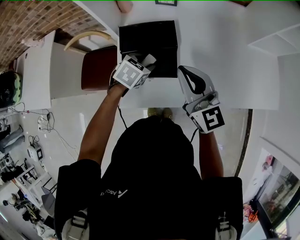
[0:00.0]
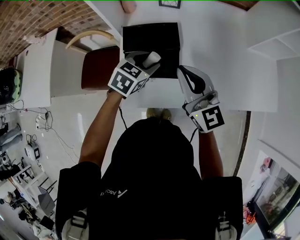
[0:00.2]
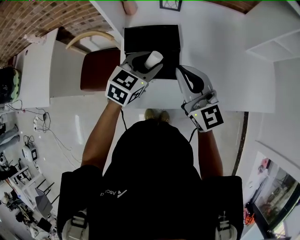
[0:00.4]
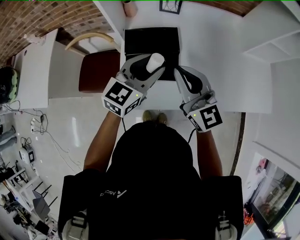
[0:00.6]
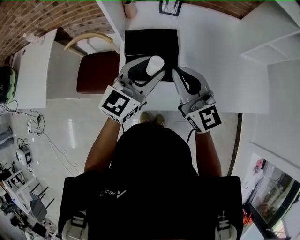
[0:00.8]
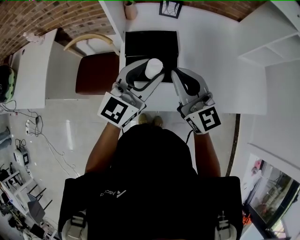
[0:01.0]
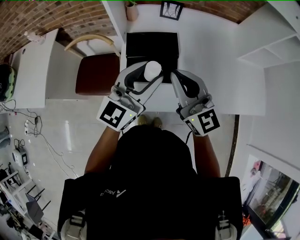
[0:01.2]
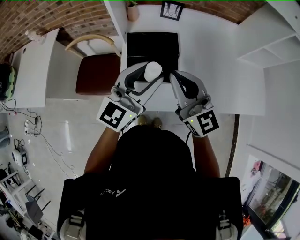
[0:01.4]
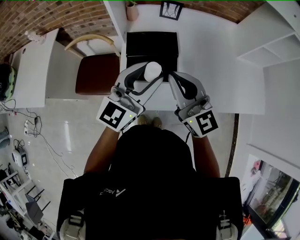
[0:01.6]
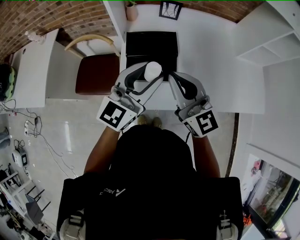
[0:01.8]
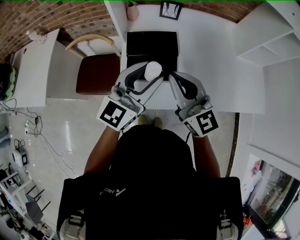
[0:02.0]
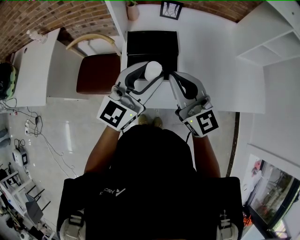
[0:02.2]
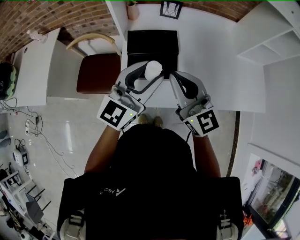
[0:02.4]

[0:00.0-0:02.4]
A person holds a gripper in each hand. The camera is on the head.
0.0 to 1.2 s: The right gripper heads upward and to the left, covering approximately 10 cm. Meanwhile the left gripper travels upward by approximately 25 cm, and tips its fingers upward by roughly 60 degrees.
1.2 to 2.4 s: The grippers stay close to where they were, moving slightly.

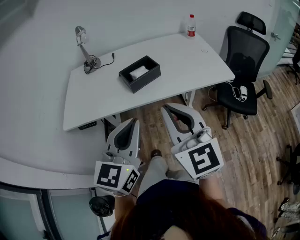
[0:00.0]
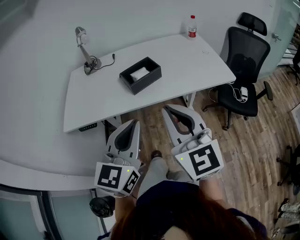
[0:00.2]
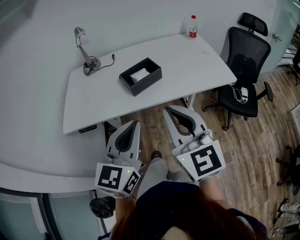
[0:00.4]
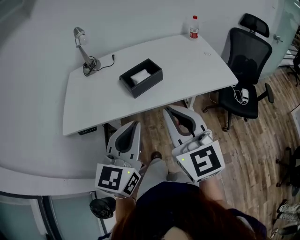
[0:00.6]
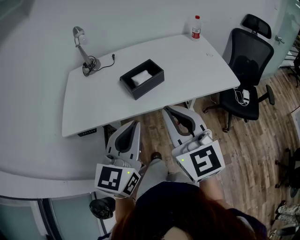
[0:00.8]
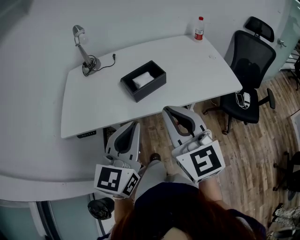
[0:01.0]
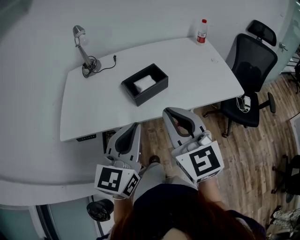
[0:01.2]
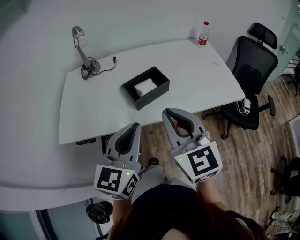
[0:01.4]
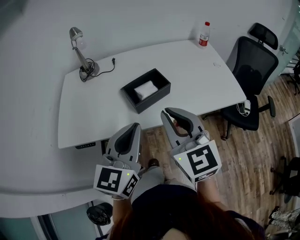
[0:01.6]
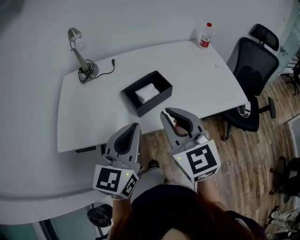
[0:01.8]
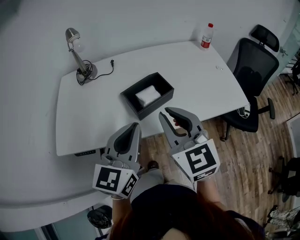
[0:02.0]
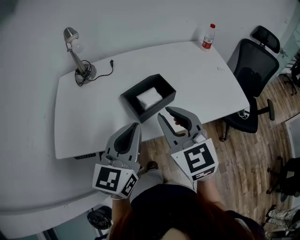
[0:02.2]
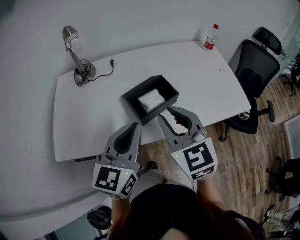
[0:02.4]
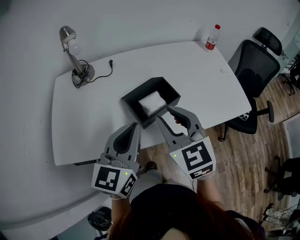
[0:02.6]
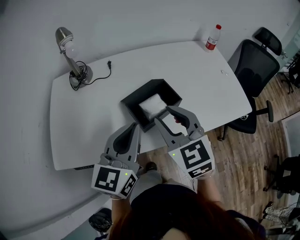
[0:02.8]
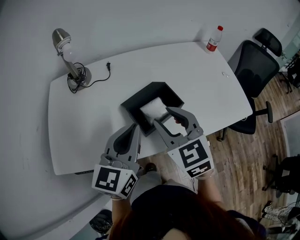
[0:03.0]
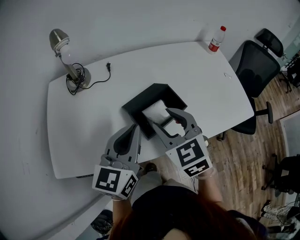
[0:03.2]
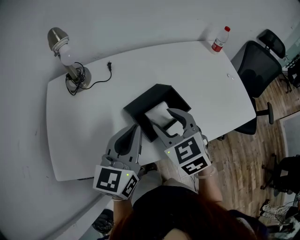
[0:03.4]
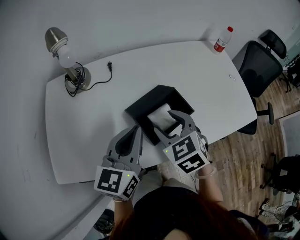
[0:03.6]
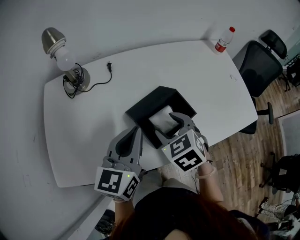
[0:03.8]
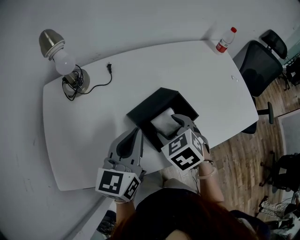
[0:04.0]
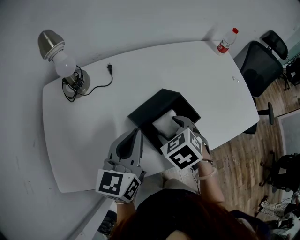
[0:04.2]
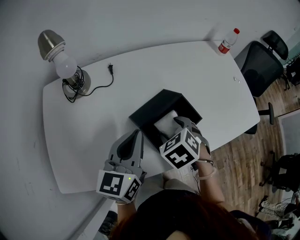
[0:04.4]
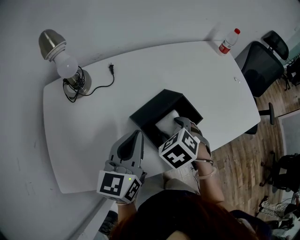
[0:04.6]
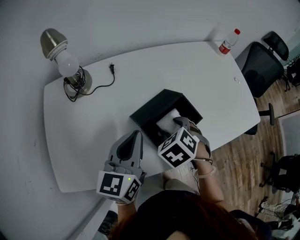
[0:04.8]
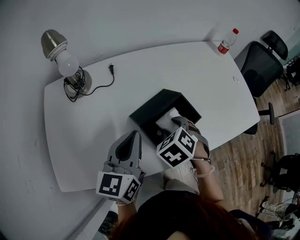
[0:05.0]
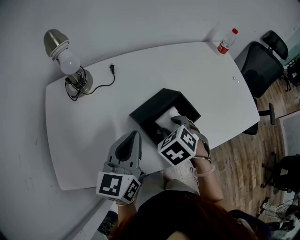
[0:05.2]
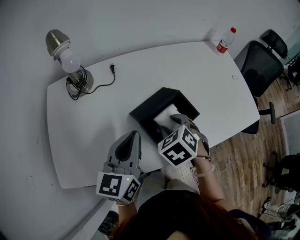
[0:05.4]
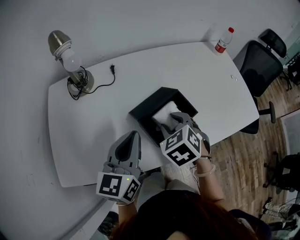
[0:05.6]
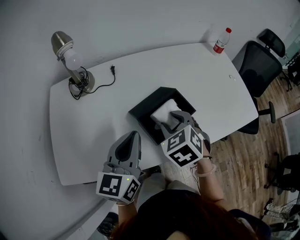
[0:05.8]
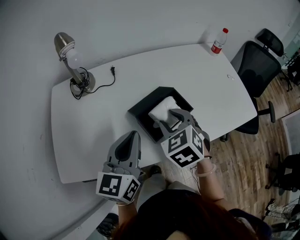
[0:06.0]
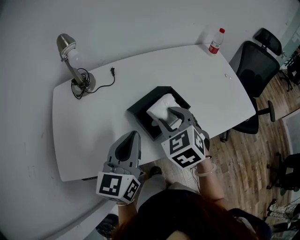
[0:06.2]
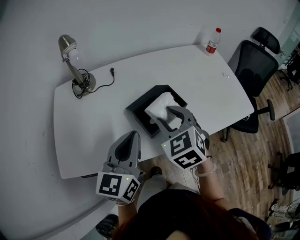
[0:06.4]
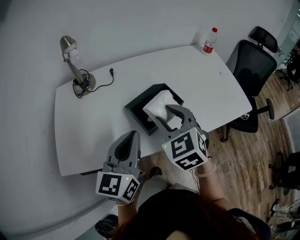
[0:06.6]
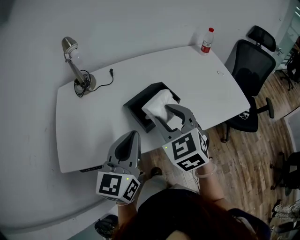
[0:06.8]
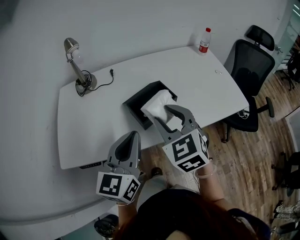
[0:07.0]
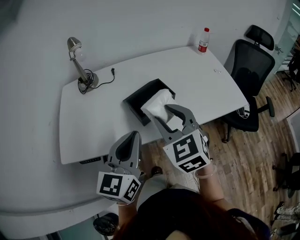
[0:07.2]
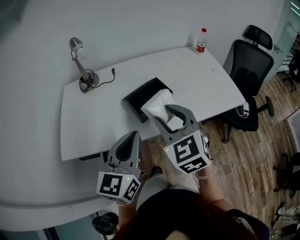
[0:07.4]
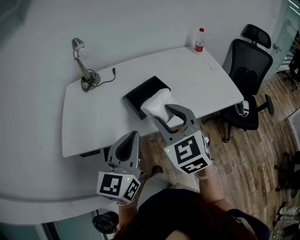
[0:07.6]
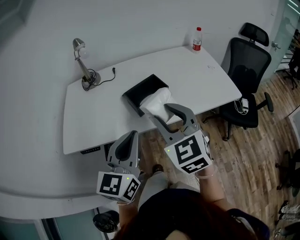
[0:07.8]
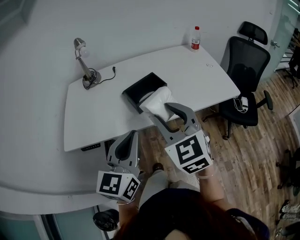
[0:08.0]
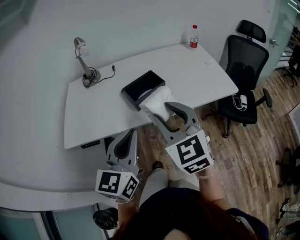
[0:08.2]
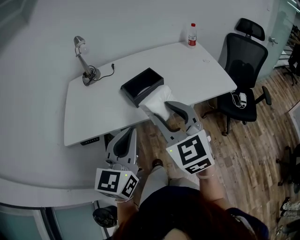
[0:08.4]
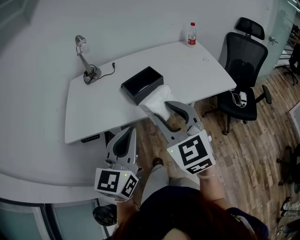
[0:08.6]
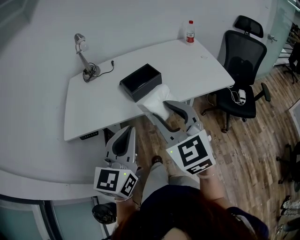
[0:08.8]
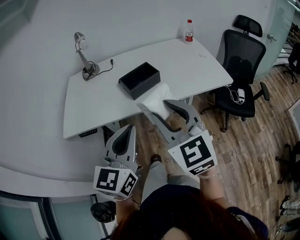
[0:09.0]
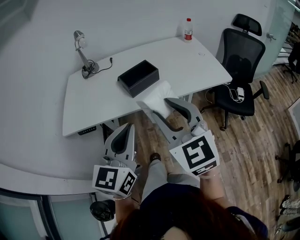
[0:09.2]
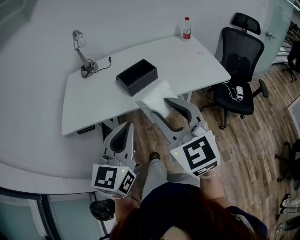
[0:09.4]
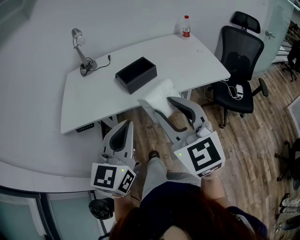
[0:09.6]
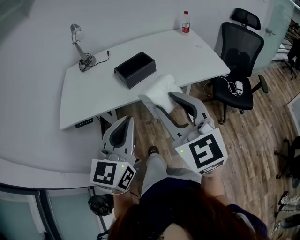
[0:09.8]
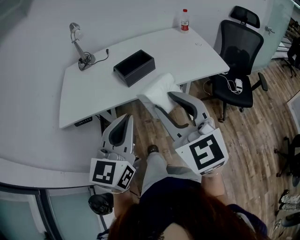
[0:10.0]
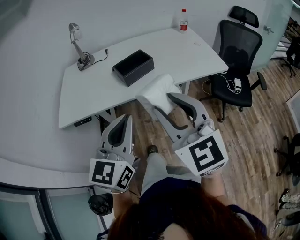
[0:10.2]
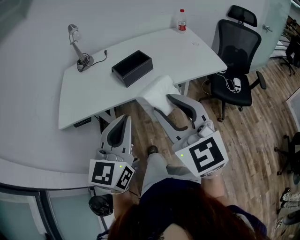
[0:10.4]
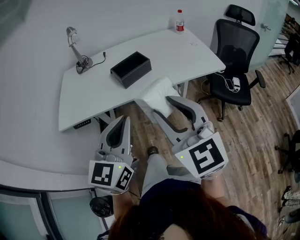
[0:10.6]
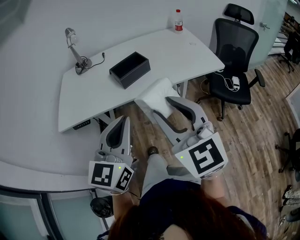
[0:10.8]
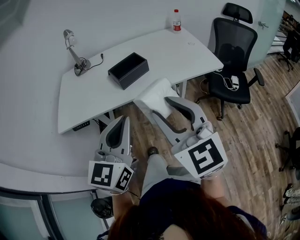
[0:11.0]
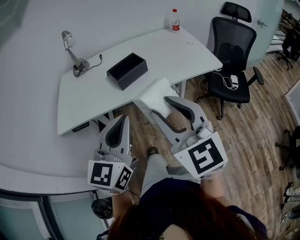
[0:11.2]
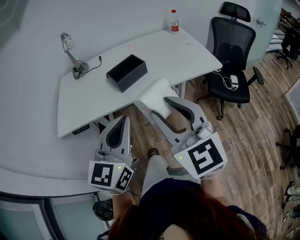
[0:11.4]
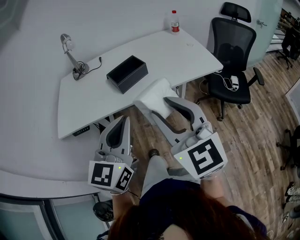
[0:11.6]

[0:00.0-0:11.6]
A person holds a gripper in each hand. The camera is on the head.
0.0 to 1.4 s: The grippers both shift forward by about 10 cm.
1.4 to 2.8 s: Both grippers move forward, approximately 15 cm. The right gripper opens.
2.8 to 4.4 s: The right gripper travels downward and forward by some 15 cm, angles its fingers downward, by approximately 40 degrees, and opens its fingers. Meanwhile the left gripper travels forward, downward and to the left by roughly 15 cm.
4.4 to 5.8 s: The right gripper is displaced upward by about 5 cm, while the left gripper changes place by about 5 cm.
5.8 to 7.2 s: The right gripper travels backward and upward by some 15 cm, and rotates some 30 degrees; the left gripper travels backward and to the right by approximately 15 cm.
7.2 to 8.8 s: The two grippers go roughly 15 cm backward.
8.8 to 10.2 s: The right gripper heads backward, covering about 10 cm, while the left gripper moves approximately 5 cm.
10.2 to 11.6 s: The grippers stay close to where they were, moving slightly.

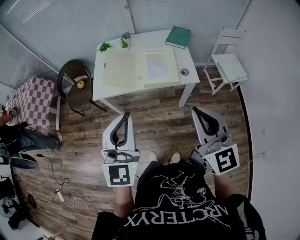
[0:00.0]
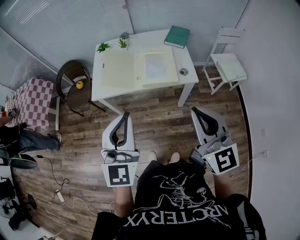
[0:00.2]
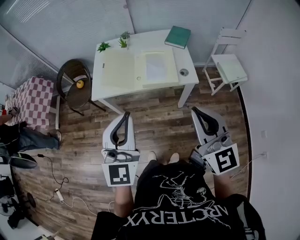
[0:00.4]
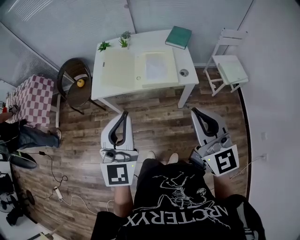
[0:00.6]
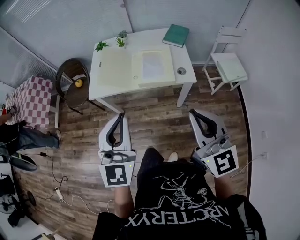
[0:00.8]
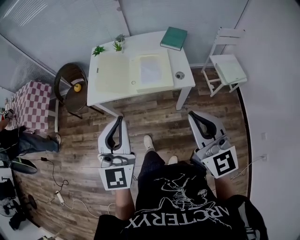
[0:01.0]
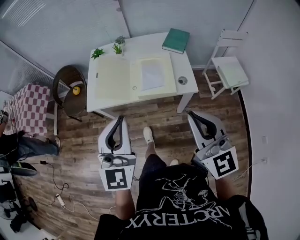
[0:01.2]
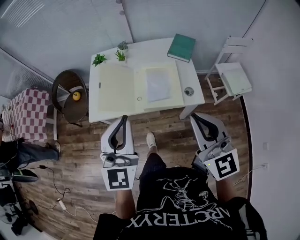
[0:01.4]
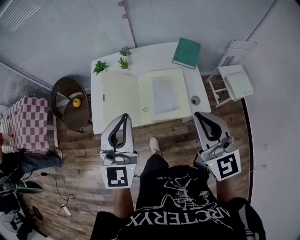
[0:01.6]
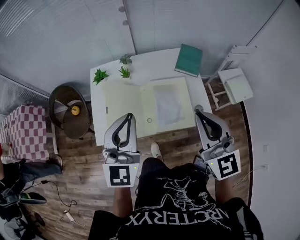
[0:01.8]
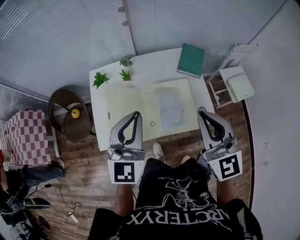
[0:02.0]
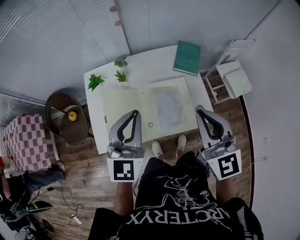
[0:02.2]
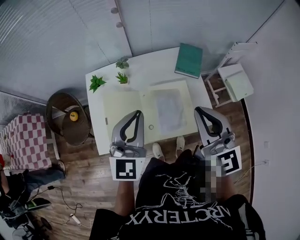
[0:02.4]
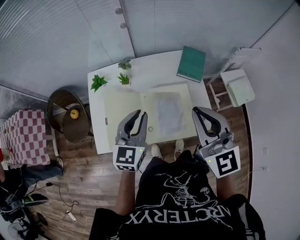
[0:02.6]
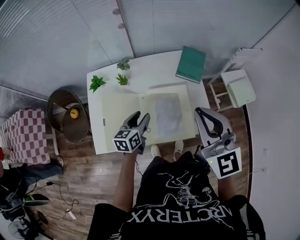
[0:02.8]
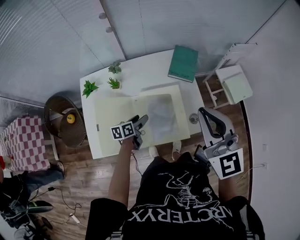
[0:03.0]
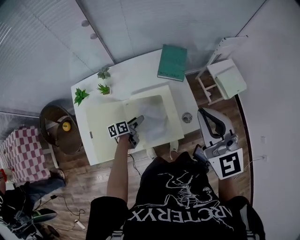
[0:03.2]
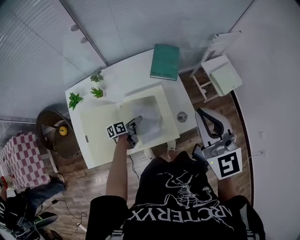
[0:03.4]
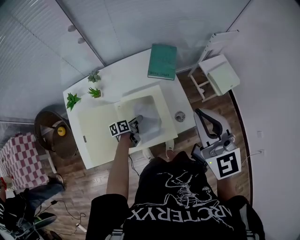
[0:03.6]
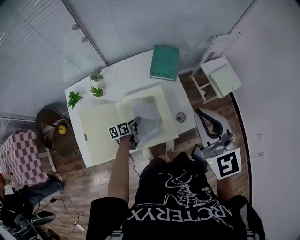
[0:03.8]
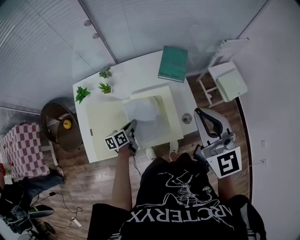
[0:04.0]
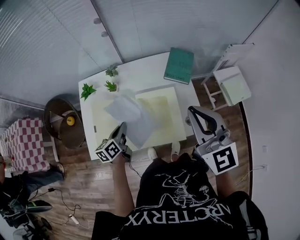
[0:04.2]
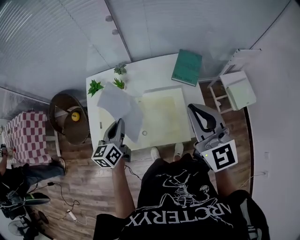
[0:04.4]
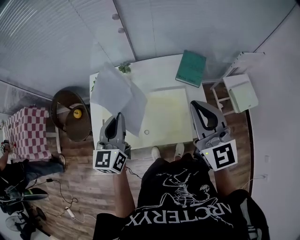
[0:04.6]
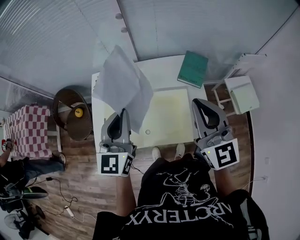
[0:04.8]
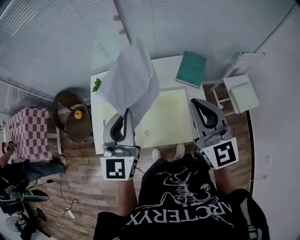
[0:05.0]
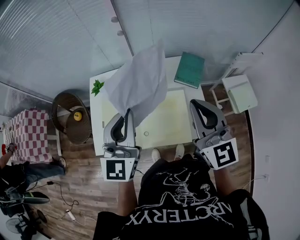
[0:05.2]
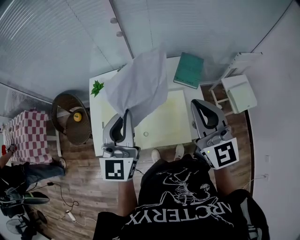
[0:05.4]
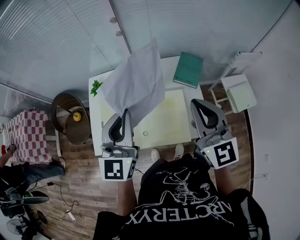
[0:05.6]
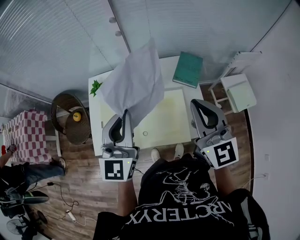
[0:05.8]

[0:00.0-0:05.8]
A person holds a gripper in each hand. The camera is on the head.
0.0 to 1.4 s: The grippers both shift forward by approximately 15 cm.
1.4 to 2.8 s: The right gripper travels forward by approximately 25 cm. Meanwhile the left gripper shifts roughly 40 cm forward and downward, changes its angle by some 50 degrees, and opens.
2.8 to 4.4 s: The left gripper moves about 20 cm downward and comes back, and closes its fingers.
4.4 to 5.8 s: The left gripper shifts approximately 20 cm upward, and turns by roughly 40 degrees.

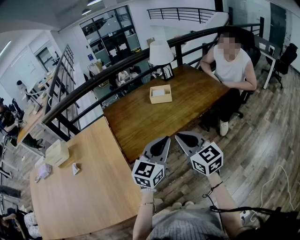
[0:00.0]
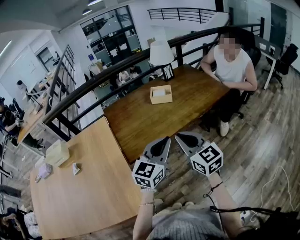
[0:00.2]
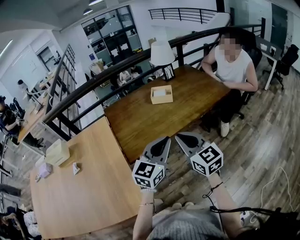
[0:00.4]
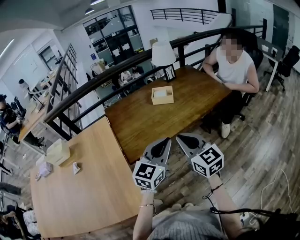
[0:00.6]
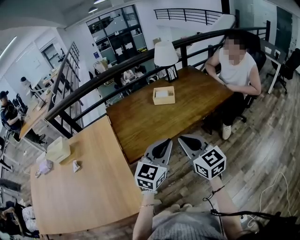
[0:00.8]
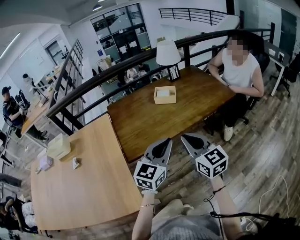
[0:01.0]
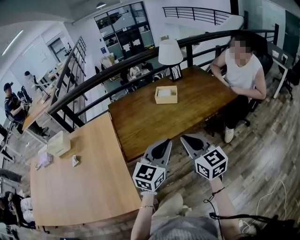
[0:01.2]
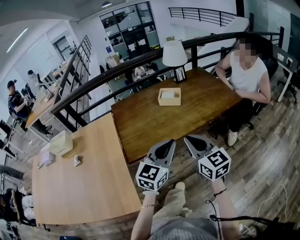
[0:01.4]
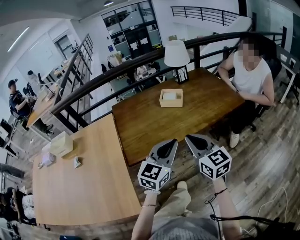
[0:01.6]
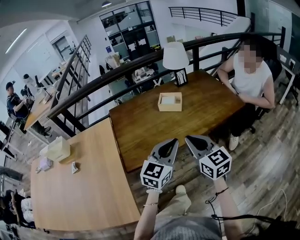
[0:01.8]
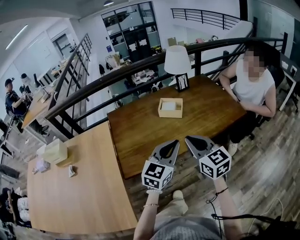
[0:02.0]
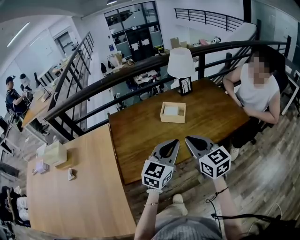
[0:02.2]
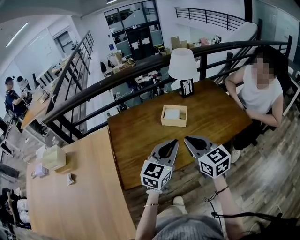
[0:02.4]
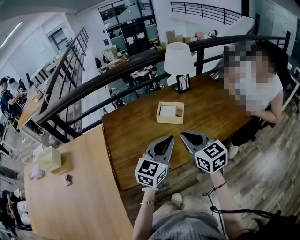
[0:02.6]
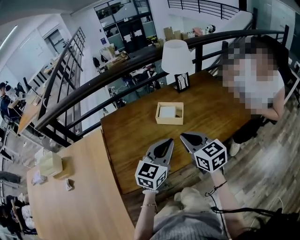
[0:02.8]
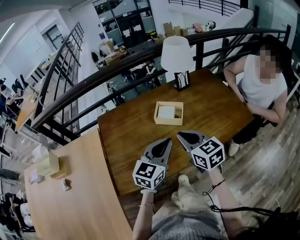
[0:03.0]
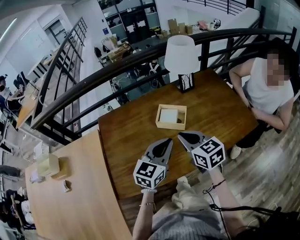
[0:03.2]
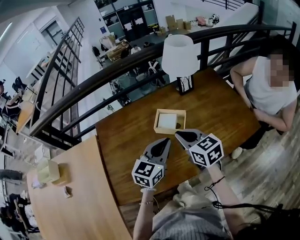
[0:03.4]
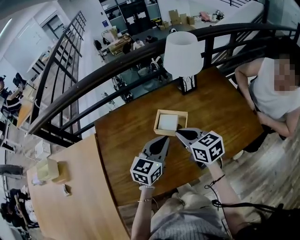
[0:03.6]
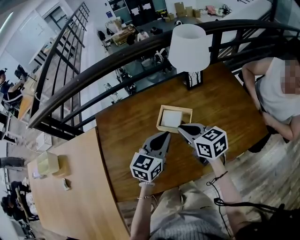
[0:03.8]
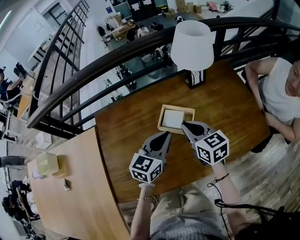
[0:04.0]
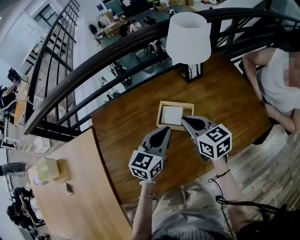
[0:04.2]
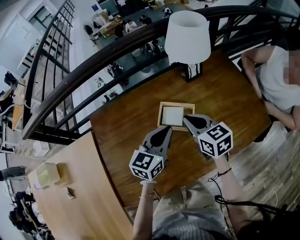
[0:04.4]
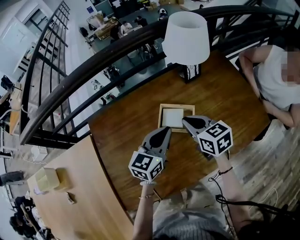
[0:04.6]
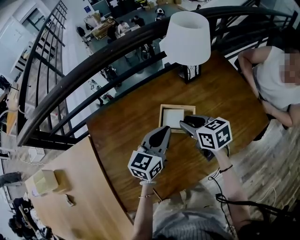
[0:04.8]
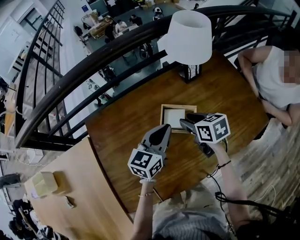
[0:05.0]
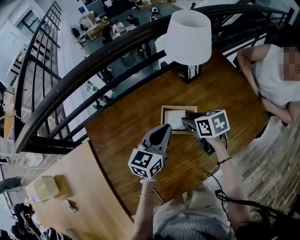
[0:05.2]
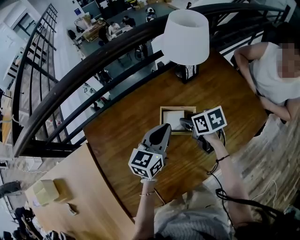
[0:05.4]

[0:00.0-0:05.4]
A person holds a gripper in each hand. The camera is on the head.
0.0 to 1.4 s: The right gripper ends up approximately 5 cm from where it was.
1.4 to 2.8 s: Both grippers travel together forward, about 20 cm.
2.8 to 4.0 s: The left gripper goes approximately 20 cm forward and downward. Meanwhile the right gripper is displaced forward by about 15 cm.
4.0 to 5.4 s: The right gripper moves downward and forward, about 10 cm, swivels approximately 30 degrees, and opens its fingers. Meanwhile the left gripper shifts approximately 5 cm forward.
